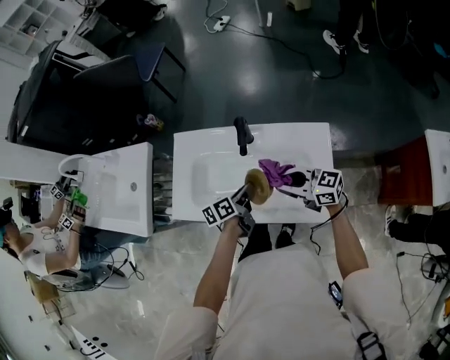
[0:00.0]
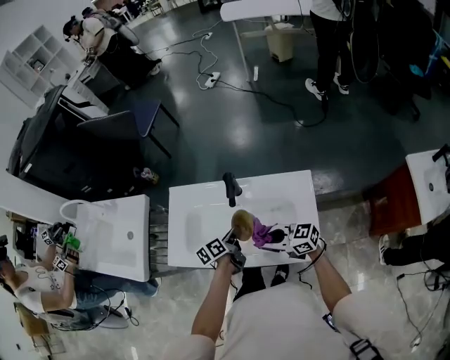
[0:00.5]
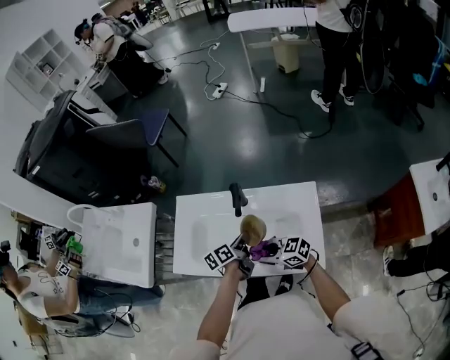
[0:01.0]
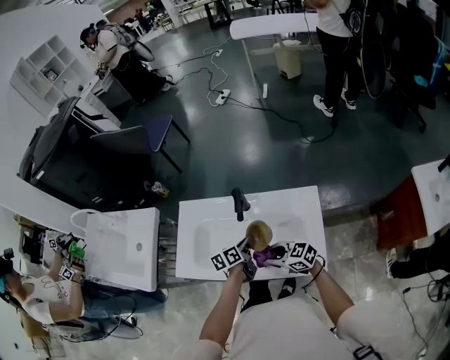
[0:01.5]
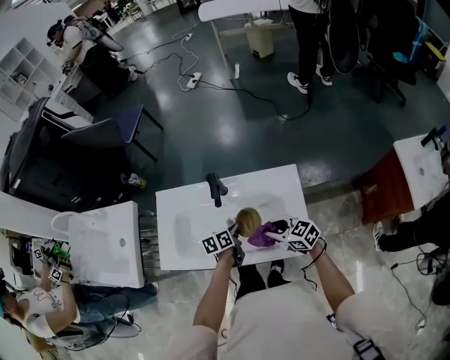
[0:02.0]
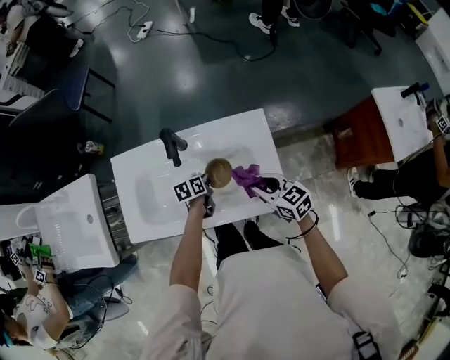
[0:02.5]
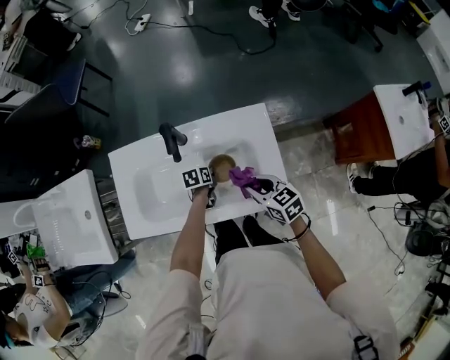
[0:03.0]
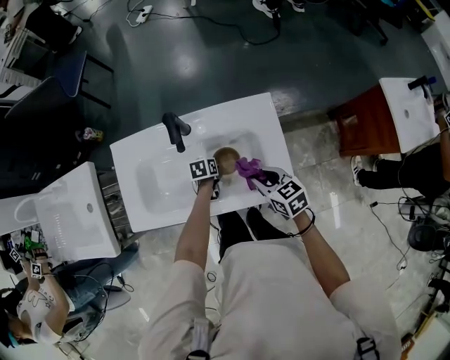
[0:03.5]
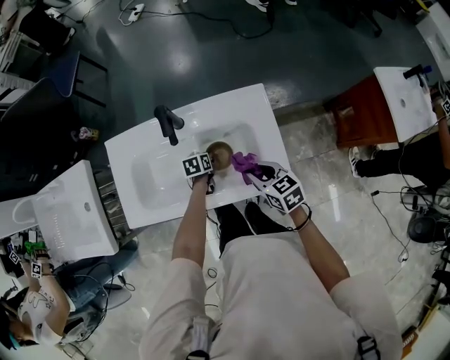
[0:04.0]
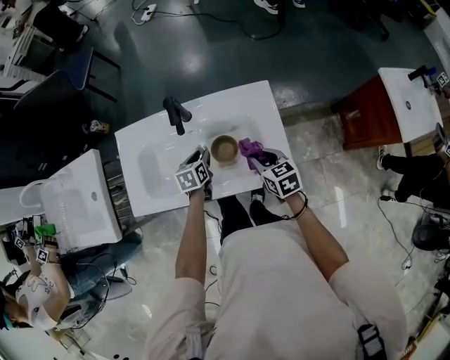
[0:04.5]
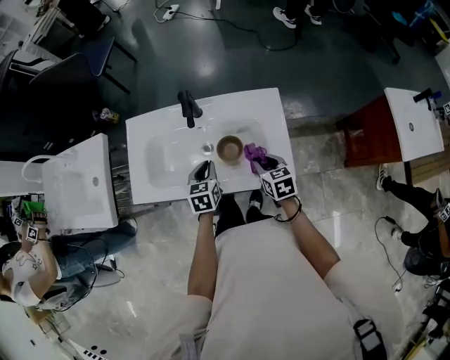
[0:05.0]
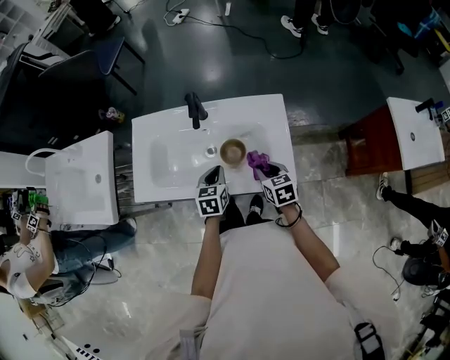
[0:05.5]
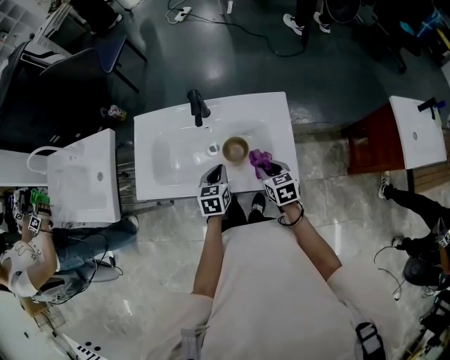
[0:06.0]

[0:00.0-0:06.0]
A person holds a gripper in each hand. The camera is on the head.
0.0 to 2.0 s: The left gripper moves to the right, approximately 5 cm, while the right gripper is displaced downward by about 5 cm, reaches roughly 5 cm to the left, then returns, and swivels about 20 degrees.
2.0 to 4.0 s: The left gripper heads downward, covering roughly 10 cm, rotates roughly 30 degrees, and opens its fingers; the right gripper changes place by some 5 cm, and swivels approximately 30 degrees.
4.0 to 6.0 s: The left gripper travels upward and backward by about 20 cm, rotates some 30 degrees, and closes.

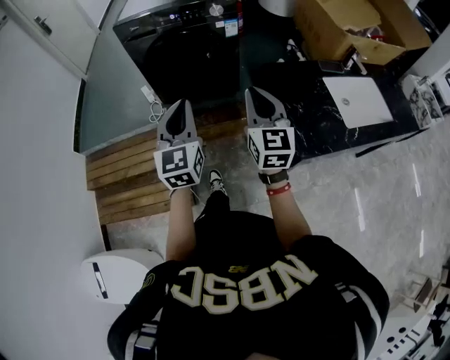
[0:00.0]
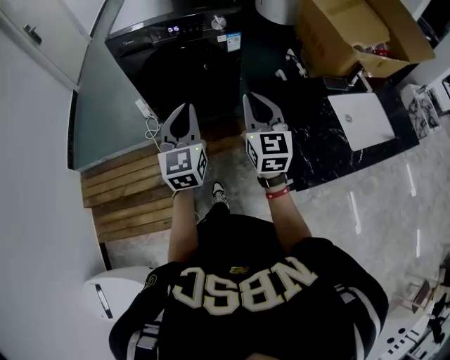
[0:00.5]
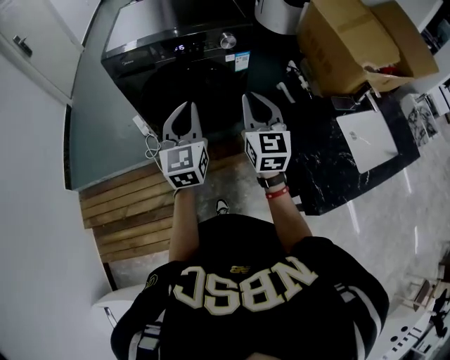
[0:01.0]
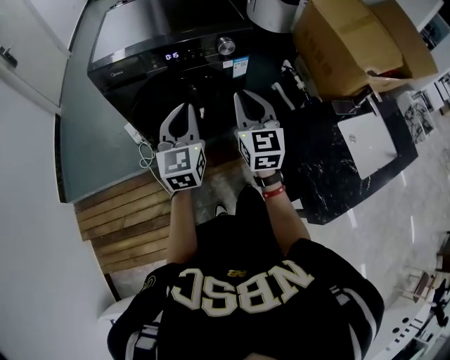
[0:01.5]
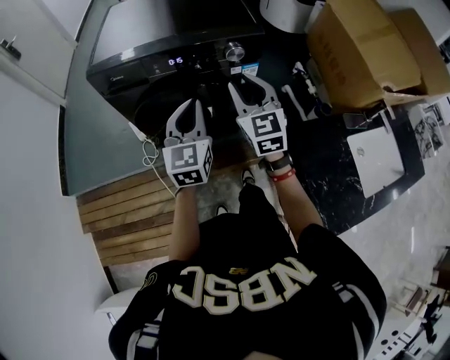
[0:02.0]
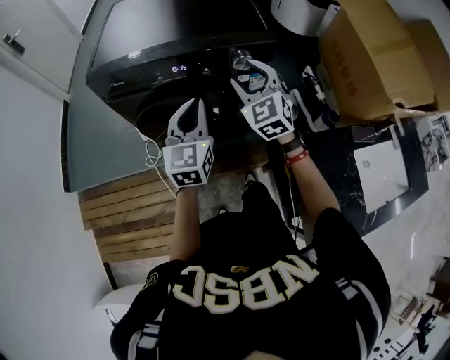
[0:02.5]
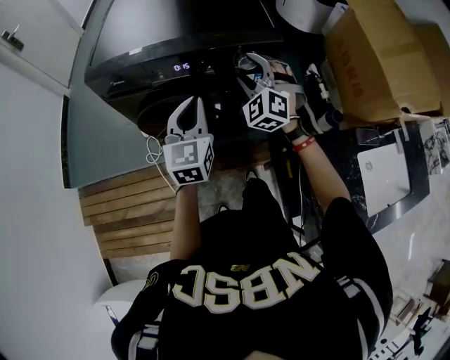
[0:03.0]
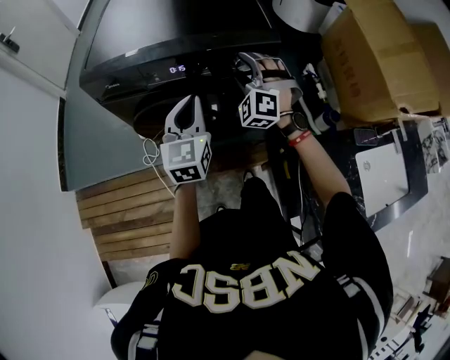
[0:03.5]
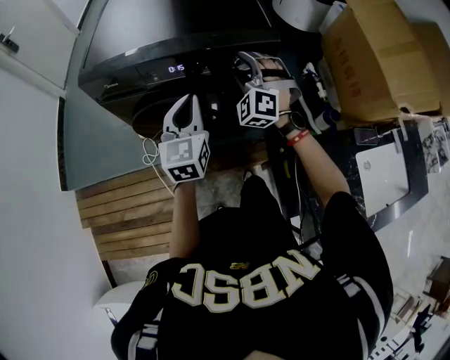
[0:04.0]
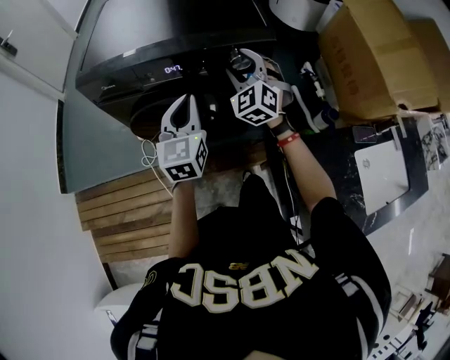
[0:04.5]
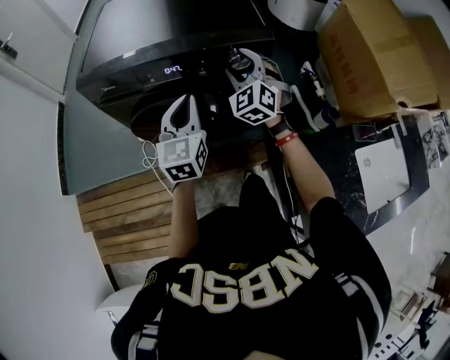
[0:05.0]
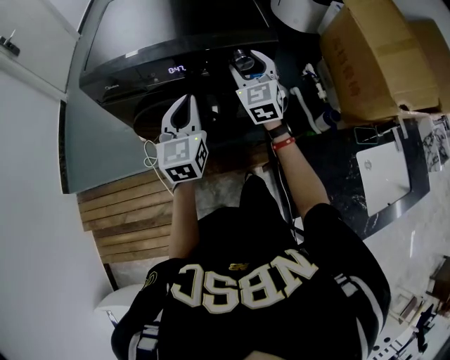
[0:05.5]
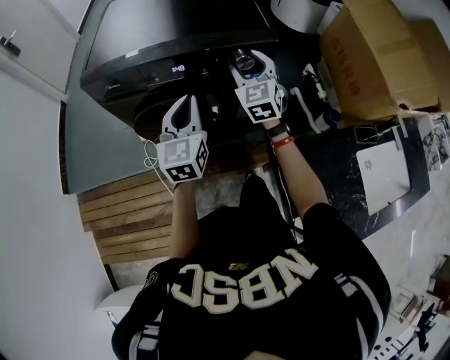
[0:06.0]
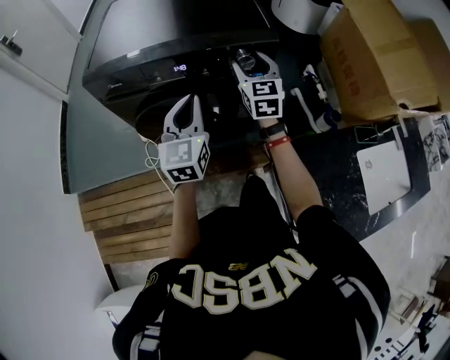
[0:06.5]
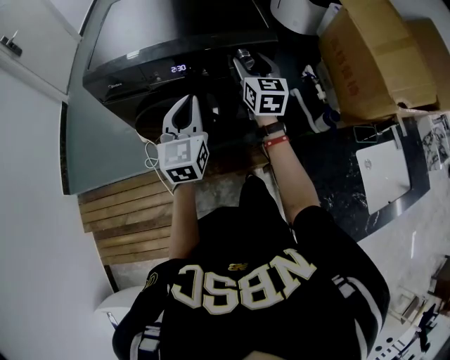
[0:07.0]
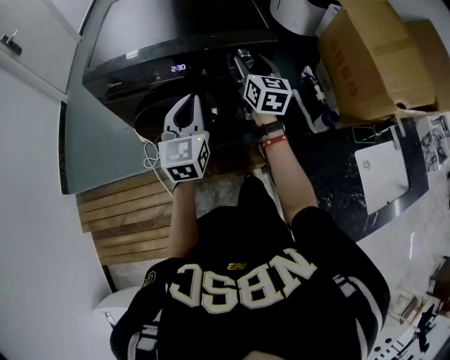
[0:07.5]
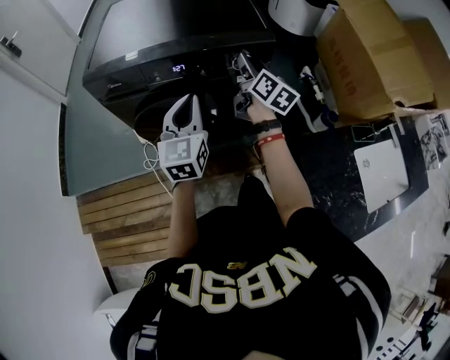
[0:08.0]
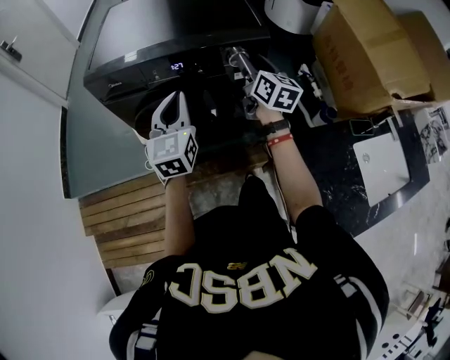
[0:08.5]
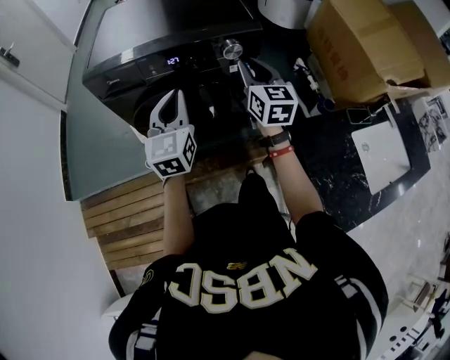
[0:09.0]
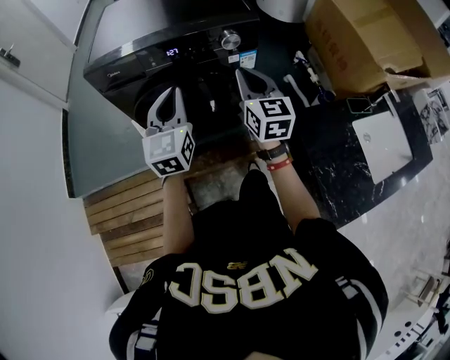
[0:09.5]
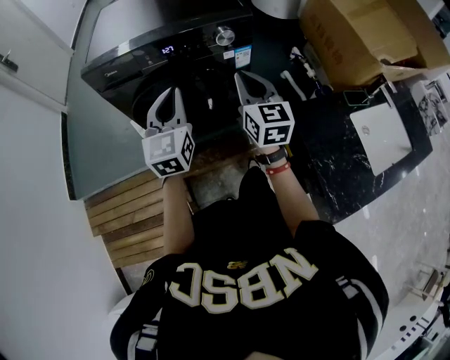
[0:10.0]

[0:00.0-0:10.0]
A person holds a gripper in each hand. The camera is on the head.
0.0 to 2.0 s: The two grippers go about 40 cm forward. The right gripper opens up.
2.0 to 4.0 s: The right gripper travels forward and downward by approximately 15 cm, rotates around the line of its fingers by approximately 60 degrees, counterclockwise from behind, and opens up, while the left gripper is displaced forward by some 10 cm.
4.0 to 6.0 s: The right gripper rolls clockwise, seen from behind, by approximately 50 degrees.
6.0 to 8.0 s: The right gripper rolls clockwise, seen from behind, by approximately 60 degrees.
8.0 to 10.0 s: The left gripper is displaced backward by roughly 10 cm, while the right gripper is displaced backward by about 20 cm, turns by about 40 degrees, and closes up.

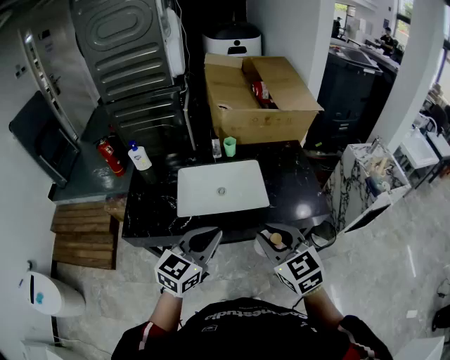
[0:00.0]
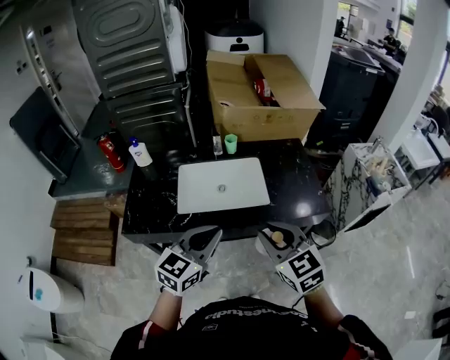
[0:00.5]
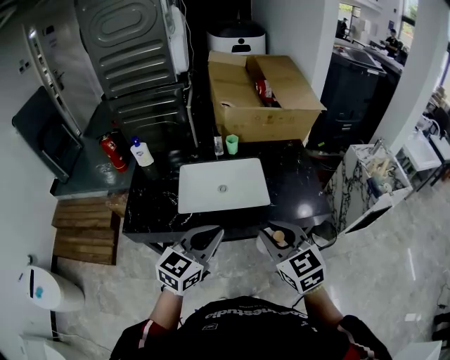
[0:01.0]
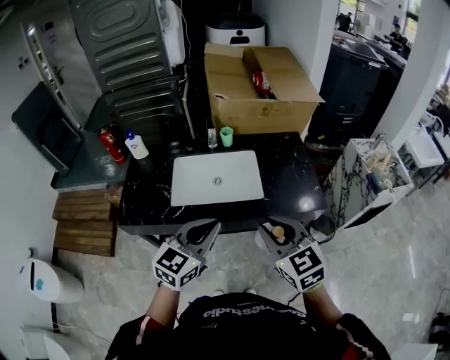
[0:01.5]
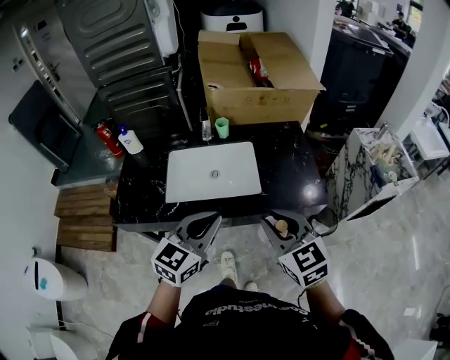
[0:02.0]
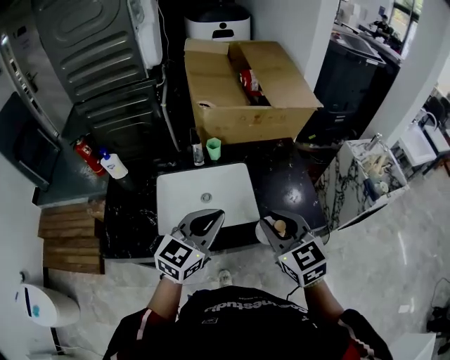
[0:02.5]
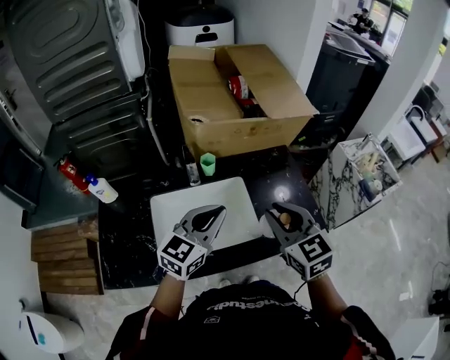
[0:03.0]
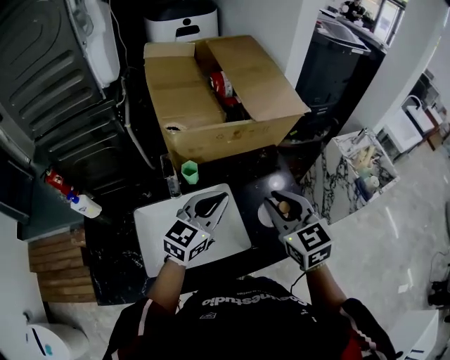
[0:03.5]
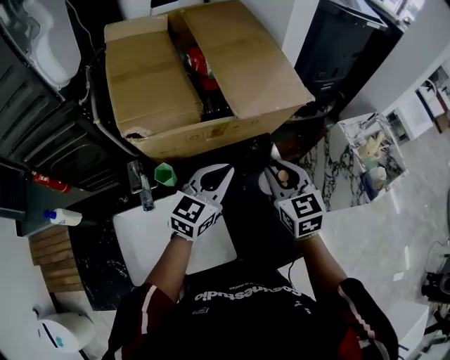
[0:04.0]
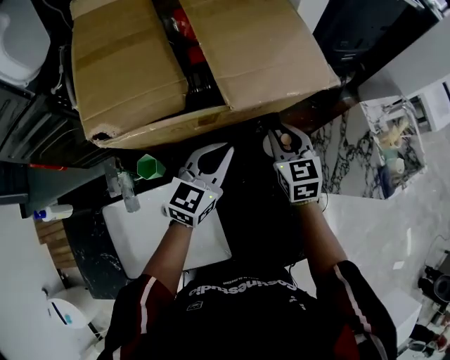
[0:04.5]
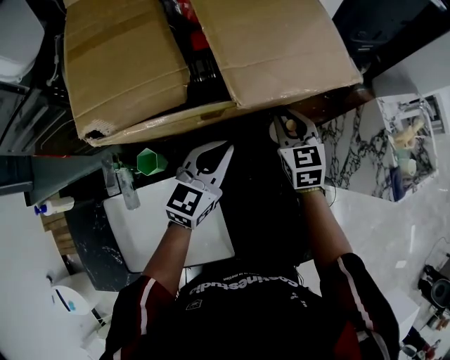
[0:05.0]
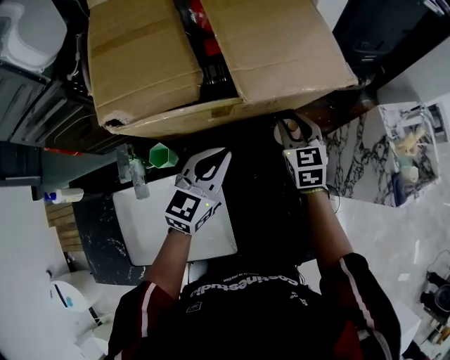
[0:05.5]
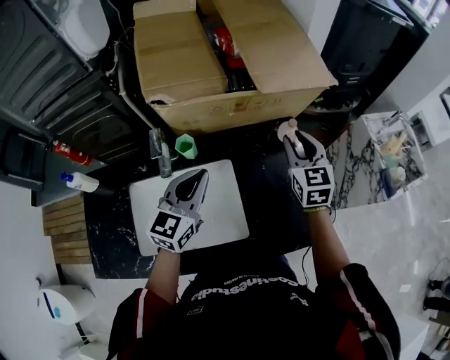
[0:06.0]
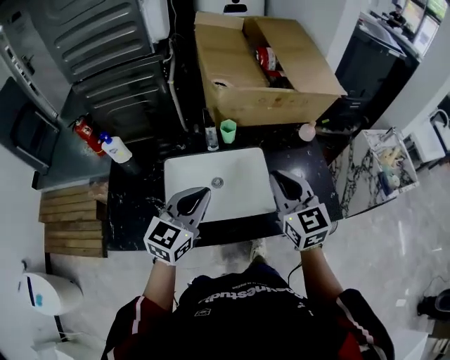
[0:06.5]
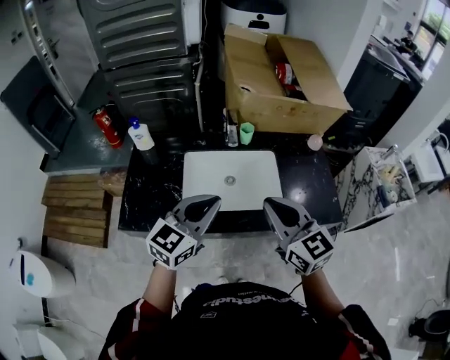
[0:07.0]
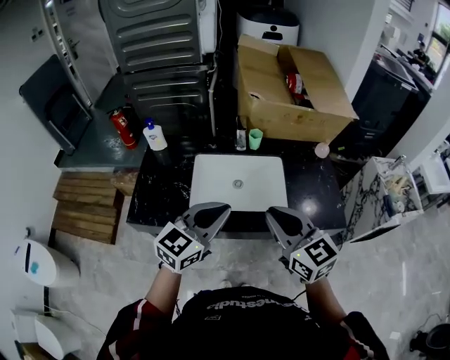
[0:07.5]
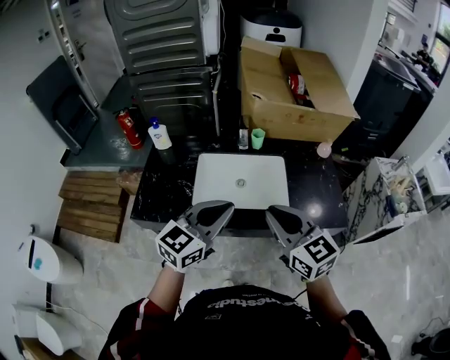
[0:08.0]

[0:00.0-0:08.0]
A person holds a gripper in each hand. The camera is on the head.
0.0 to 2.0 s: The two grippers go some 5 cm to the right.
2.0 to 4.0 s: The two grippers travel together, forward, roughly 50 cm. The right gripper changes its angle by approximately 20 degrees.
4.0 to 6.0 s: The left gripper moves backward and to the left, about 15 cm. Meanwhile the right gripper goes forward and returns, approximately 15 cm each way.
6.0 to 8.0 s: The left gripper moves backward, some 35 cm; the right gripper shifts some 50 cm backward and to the left, changes its angle by about 40 degrees, and closes.

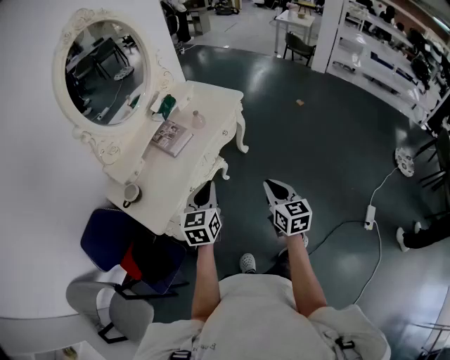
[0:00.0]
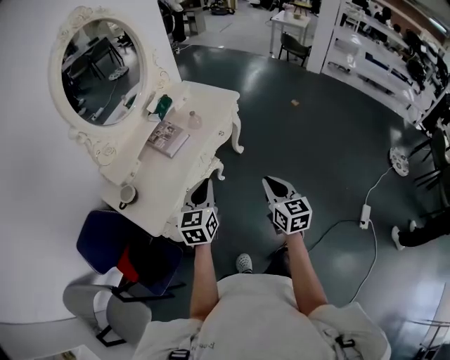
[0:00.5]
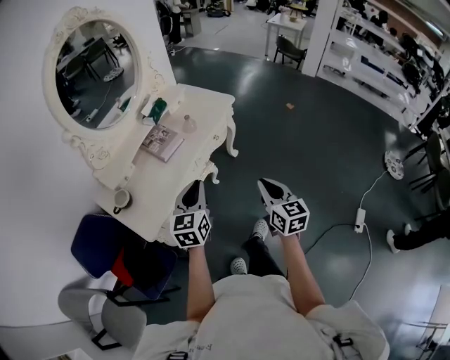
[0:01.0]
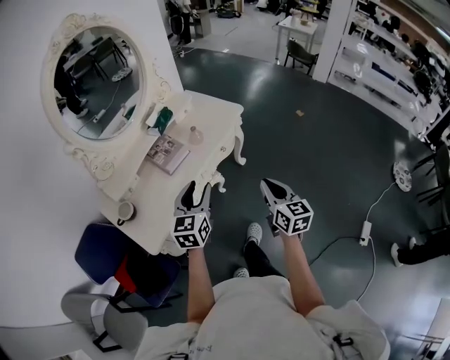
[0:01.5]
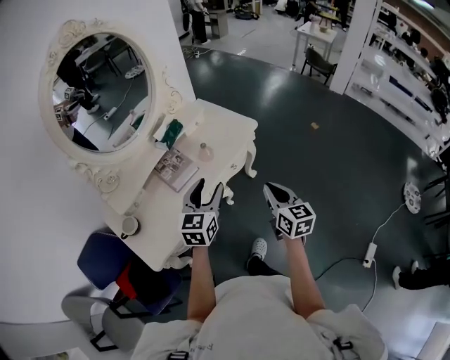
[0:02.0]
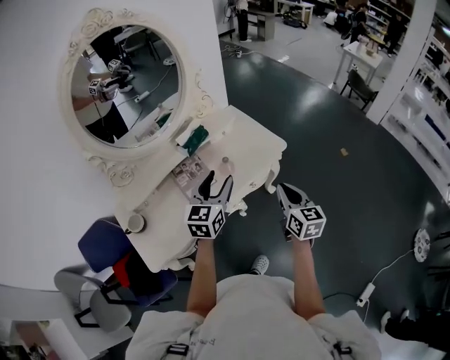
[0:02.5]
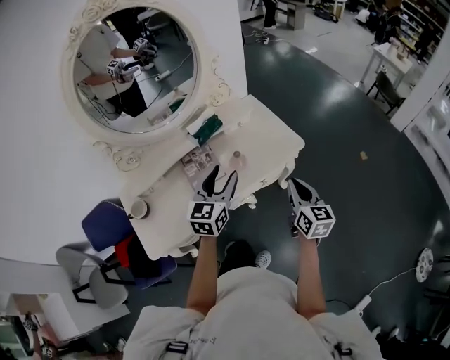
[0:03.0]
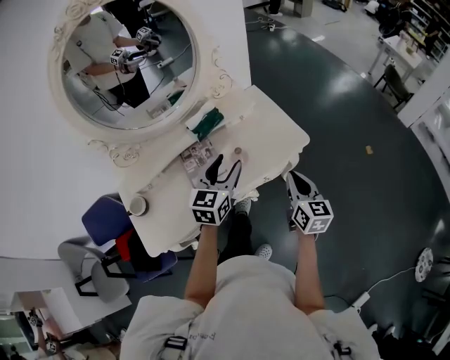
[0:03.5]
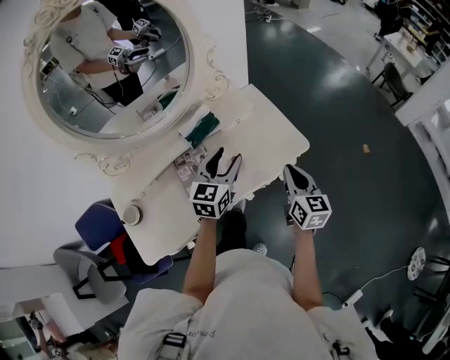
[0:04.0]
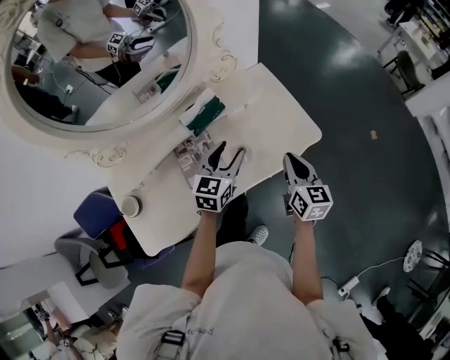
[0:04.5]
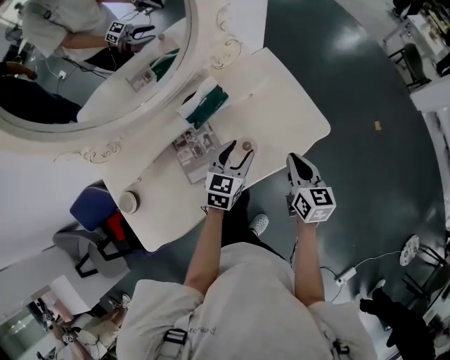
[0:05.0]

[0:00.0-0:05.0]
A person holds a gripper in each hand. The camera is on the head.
0.0 to 2.5 s: The two grippers go approximately 35 cm forward. The left gripper opens.
2.5 to 5.0 s: The left gripper is displaced downward and forward by approximately 25 cm. The right gripper moves forward and downward, roughly 25 cm.
